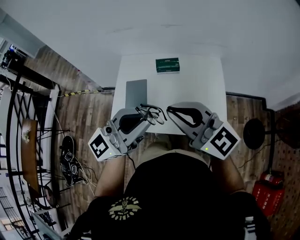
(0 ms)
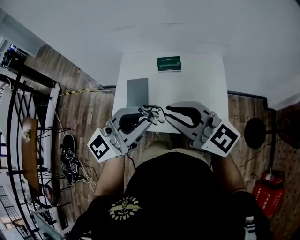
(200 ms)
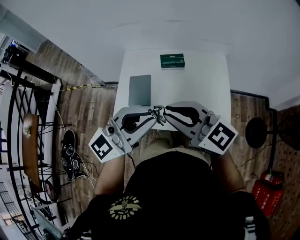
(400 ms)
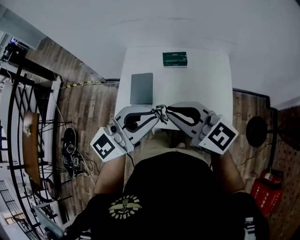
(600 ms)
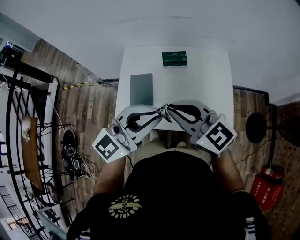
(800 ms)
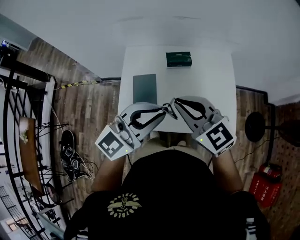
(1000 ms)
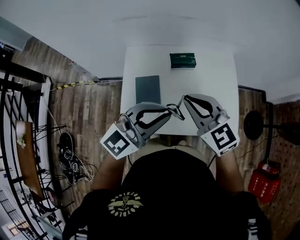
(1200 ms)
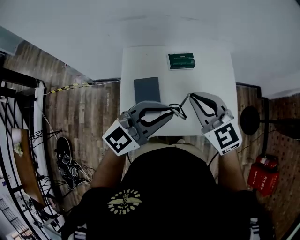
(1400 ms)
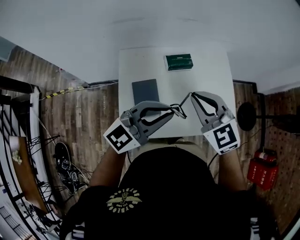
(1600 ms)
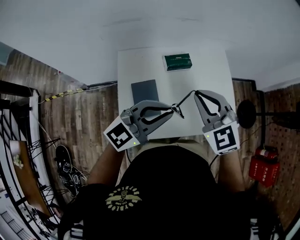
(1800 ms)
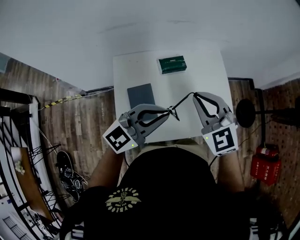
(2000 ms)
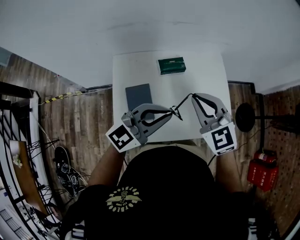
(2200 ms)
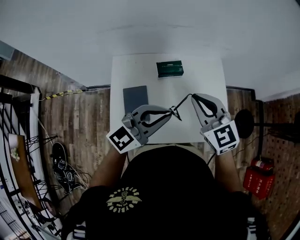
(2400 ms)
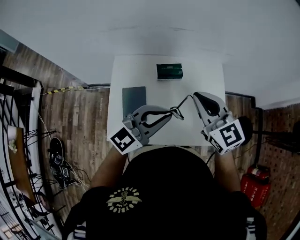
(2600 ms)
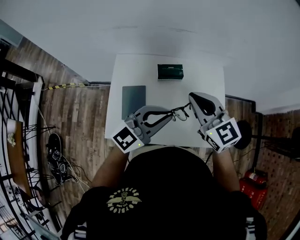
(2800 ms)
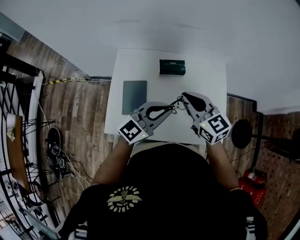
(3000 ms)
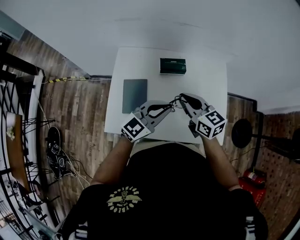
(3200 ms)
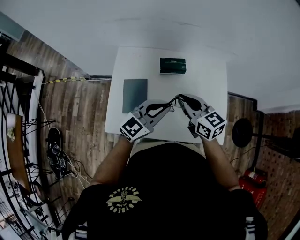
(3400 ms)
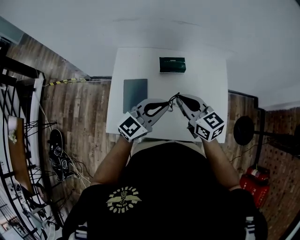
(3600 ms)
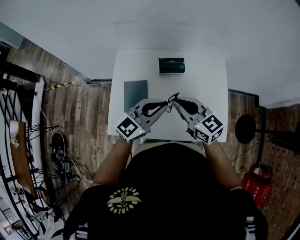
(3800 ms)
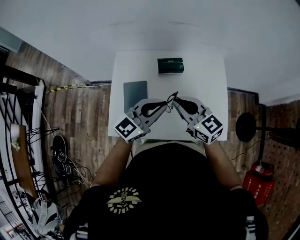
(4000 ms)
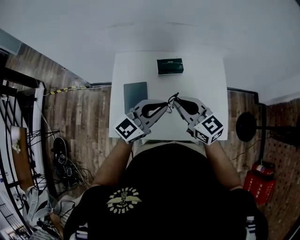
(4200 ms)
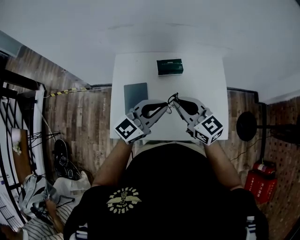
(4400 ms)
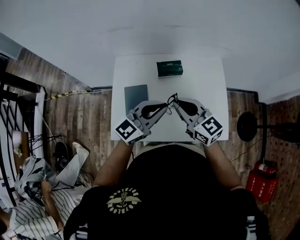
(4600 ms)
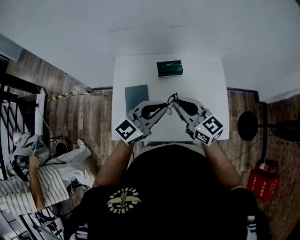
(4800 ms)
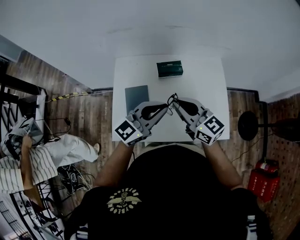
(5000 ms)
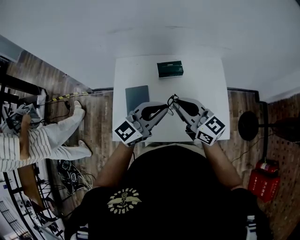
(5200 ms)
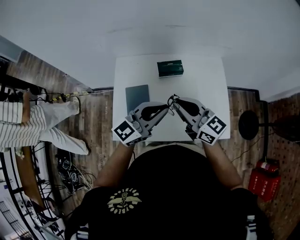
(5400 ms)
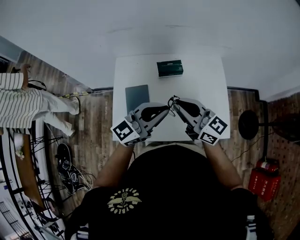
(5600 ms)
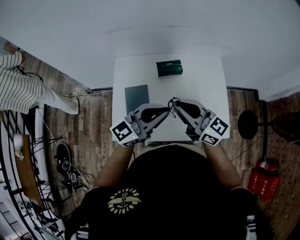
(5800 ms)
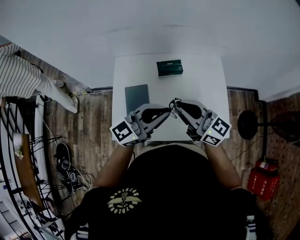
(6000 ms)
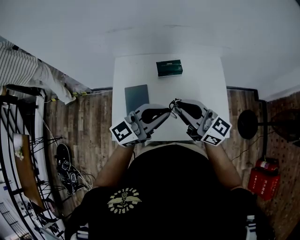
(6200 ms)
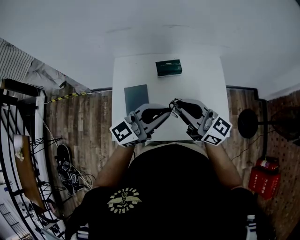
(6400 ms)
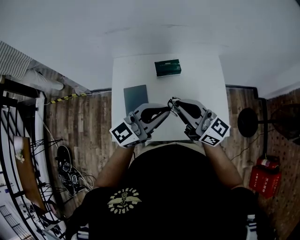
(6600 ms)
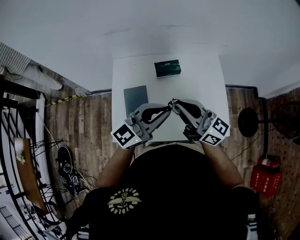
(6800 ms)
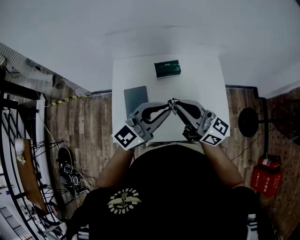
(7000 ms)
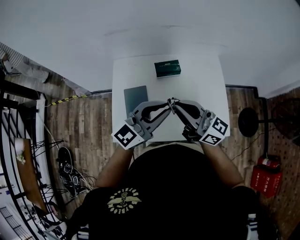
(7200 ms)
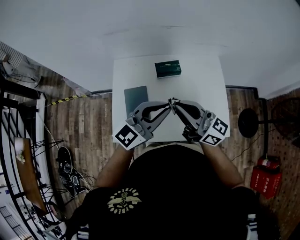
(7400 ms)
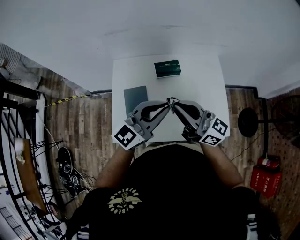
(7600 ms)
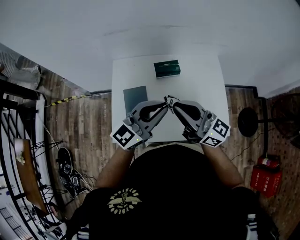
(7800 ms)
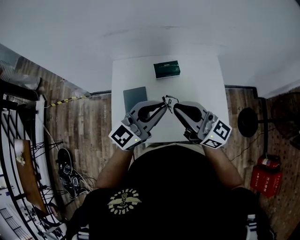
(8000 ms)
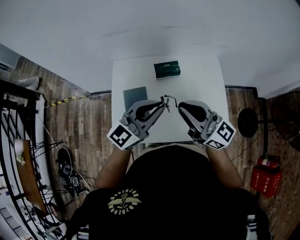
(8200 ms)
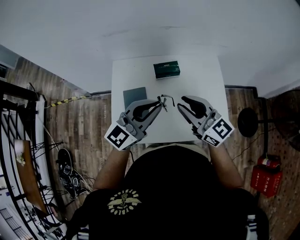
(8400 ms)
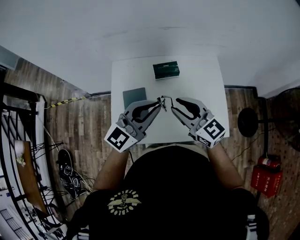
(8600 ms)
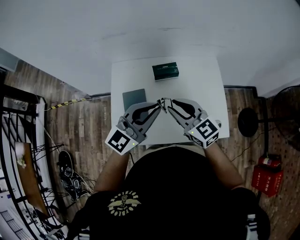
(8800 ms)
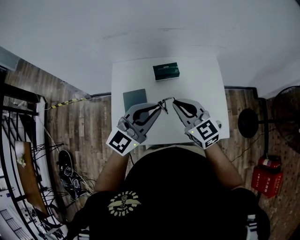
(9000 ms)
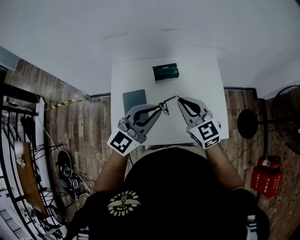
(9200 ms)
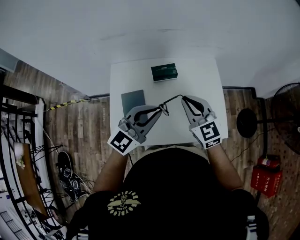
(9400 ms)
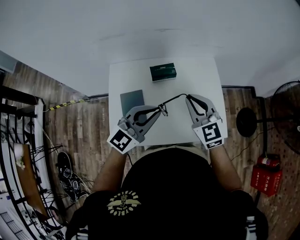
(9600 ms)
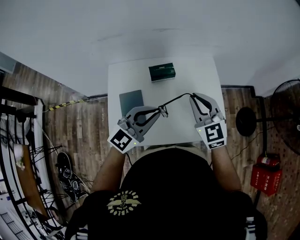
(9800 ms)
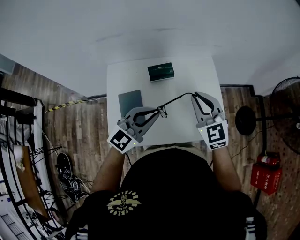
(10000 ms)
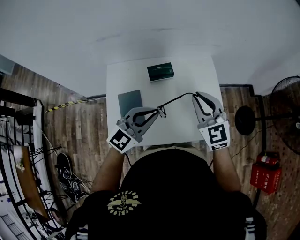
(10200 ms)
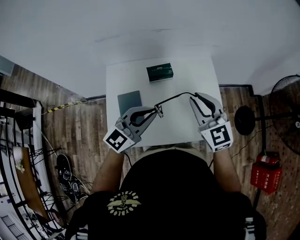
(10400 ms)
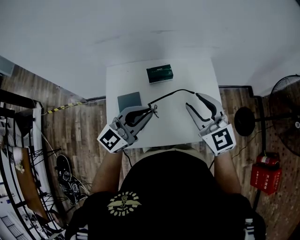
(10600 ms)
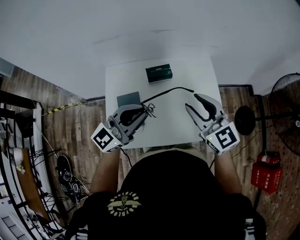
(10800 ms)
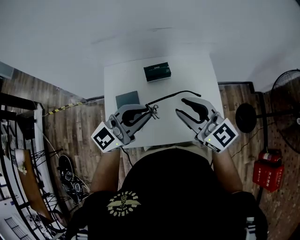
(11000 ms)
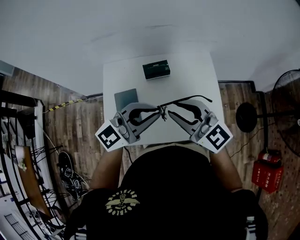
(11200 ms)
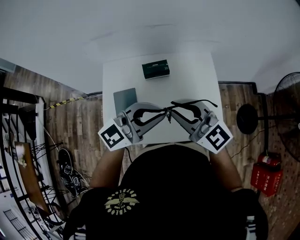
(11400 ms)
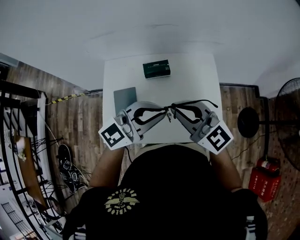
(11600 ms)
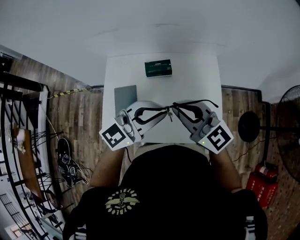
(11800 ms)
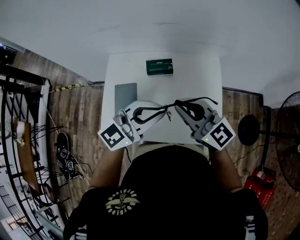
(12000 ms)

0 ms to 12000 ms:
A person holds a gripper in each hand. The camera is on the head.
0 ms to 1600 ms: Both grippers move forward, to the left and downward, roughly 20 cm. The right gripper rotates about 40 degrees, while the left gripper changes its angle by some 20 degrees.
1600 ms to 3000 ms: The right gripper travels to the right and forward by approximately 10 cm, and turns by roughly 30 degrees. Meanwhile the left gripper is displaced to the right, downward and forward by approximately 15 cm.
3000 ms to 4400 ms: The right gripper changes place by some 5 cm.
4400 ms to 6000 ms: The right gripper moves approximately 5 cm.
6000 ms to 7600 ms: The grippers move only a little.
7600 ms to 9000 ms: The right gripper goes some 5 cm downward, tips its fingers downward by approximately 30 degrees, and opens, then closes again.
9000 ms to 10400 ms: The right gripper goes approximately 5 cm to the right.
10400 ms to 12000 ms: The left gripper shifts roughly 10 cm to the right. Meanwhile the right gripper changes its angle by roughly 40 degrees, and opens and closes again.

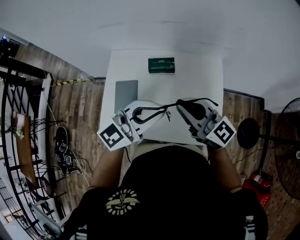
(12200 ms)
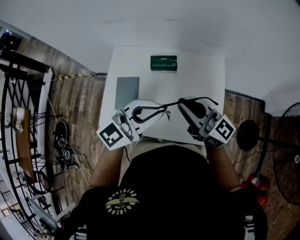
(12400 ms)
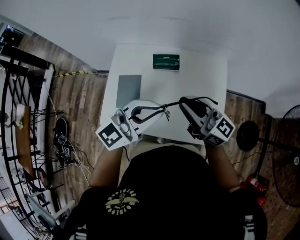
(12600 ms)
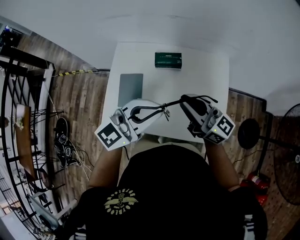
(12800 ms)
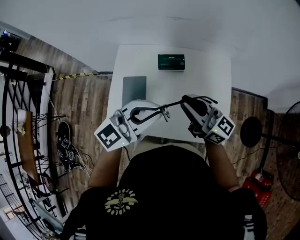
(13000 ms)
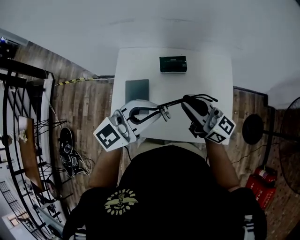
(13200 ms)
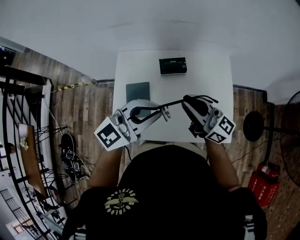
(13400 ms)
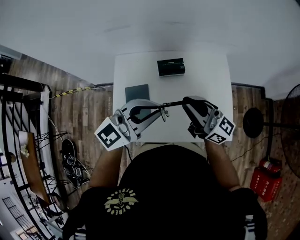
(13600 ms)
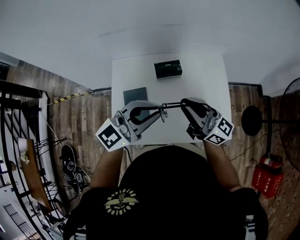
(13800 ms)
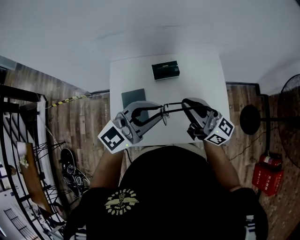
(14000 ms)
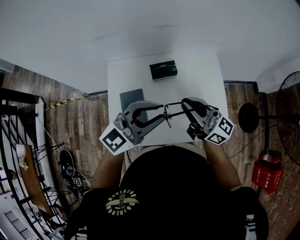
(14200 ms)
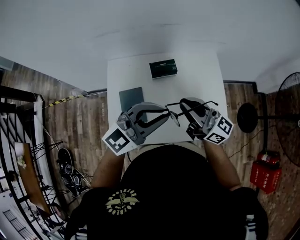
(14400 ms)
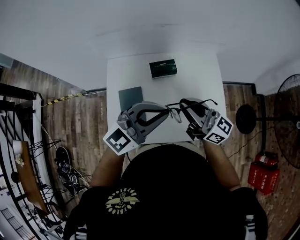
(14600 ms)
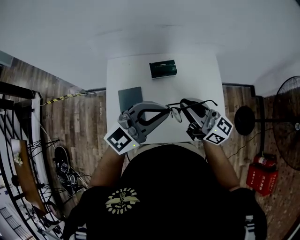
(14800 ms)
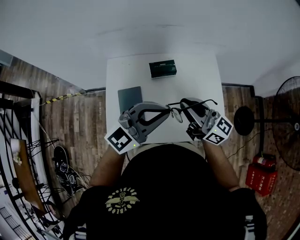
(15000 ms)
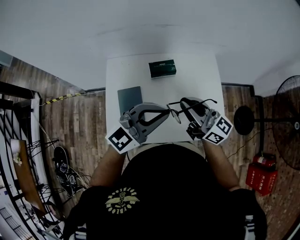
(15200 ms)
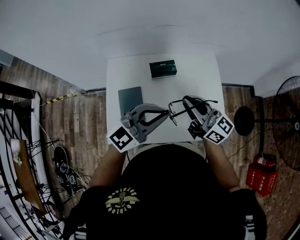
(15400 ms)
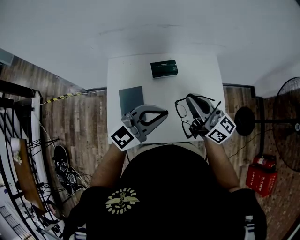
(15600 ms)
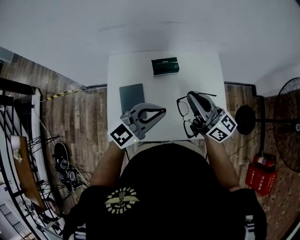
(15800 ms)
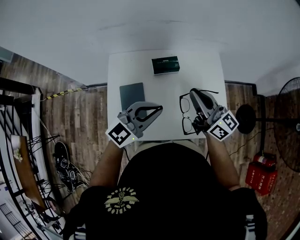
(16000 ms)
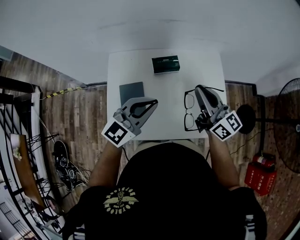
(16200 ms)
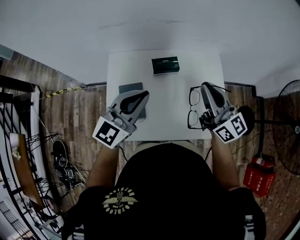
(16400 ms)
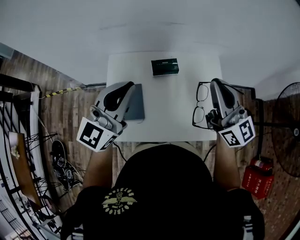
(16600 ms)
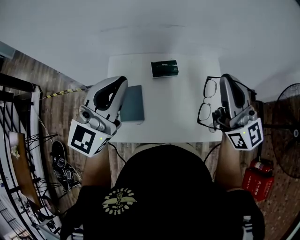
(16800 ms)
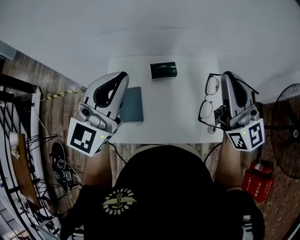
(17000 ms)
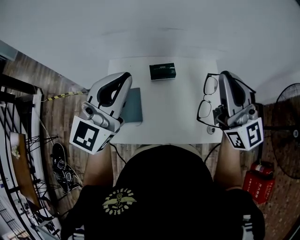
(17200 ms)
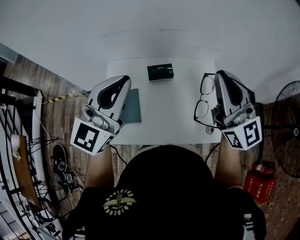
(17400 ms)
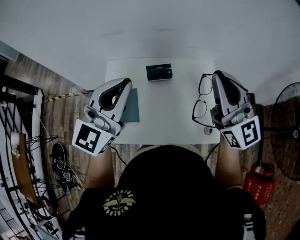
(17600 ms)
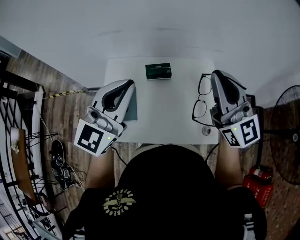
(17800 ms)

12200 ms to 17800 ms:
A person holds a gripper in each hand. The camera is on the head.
12200 ms to 13600 ms: The right gripper travels to the left by about 5 cm. Meanwhile the left gripper heads to the left, covering roughly 10 cm.
13600 ms to 15000 ms: The grippers make only small movements.
15000 ms to 16400 ms: The right gripper travels forward by approximately 5 cm. The left gripper shifts roughly 10 cm to the left, and swivels some 20 degrees.
16400 ms to 17800 ms: The right gripper travels upward and to the right by about 15 cm, and turns by about 20 degrees. The left gripper travels upward by approximately 10 cm.

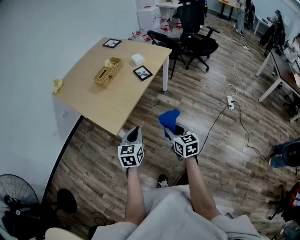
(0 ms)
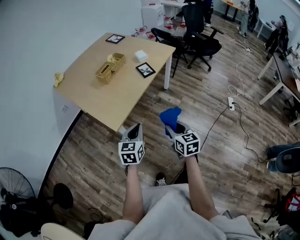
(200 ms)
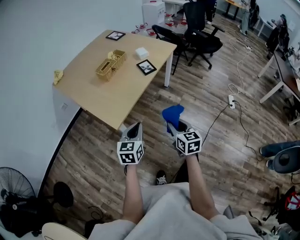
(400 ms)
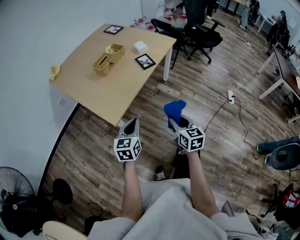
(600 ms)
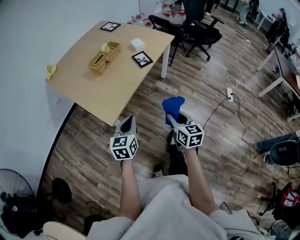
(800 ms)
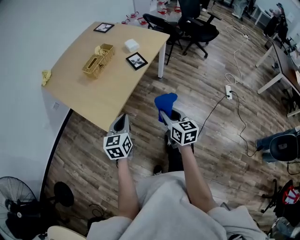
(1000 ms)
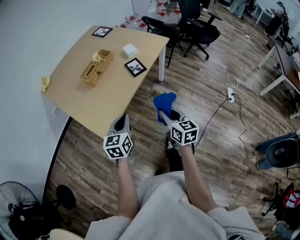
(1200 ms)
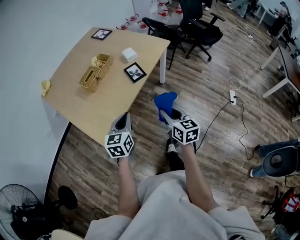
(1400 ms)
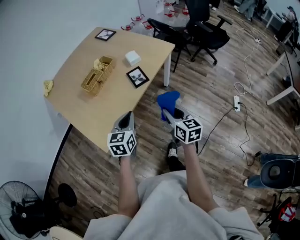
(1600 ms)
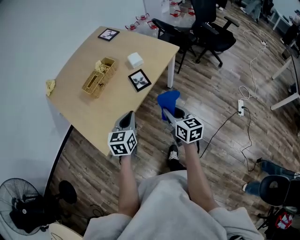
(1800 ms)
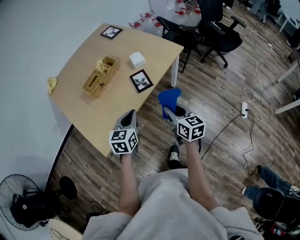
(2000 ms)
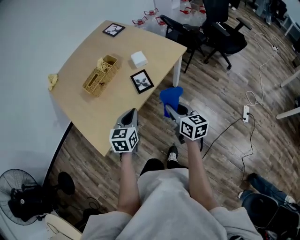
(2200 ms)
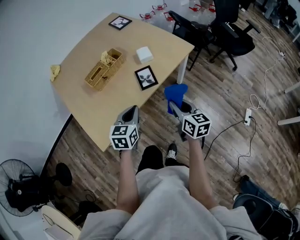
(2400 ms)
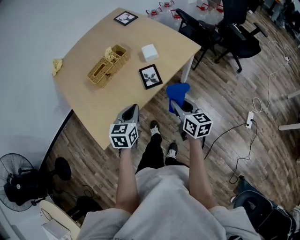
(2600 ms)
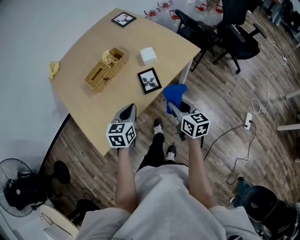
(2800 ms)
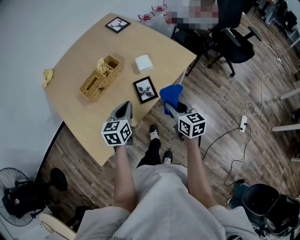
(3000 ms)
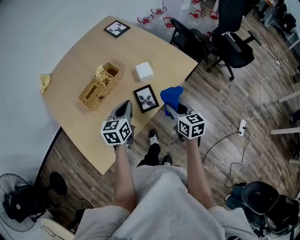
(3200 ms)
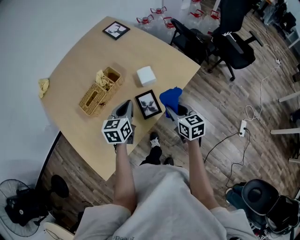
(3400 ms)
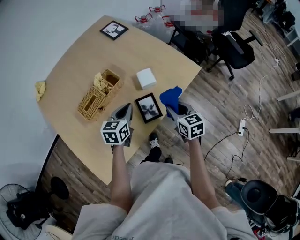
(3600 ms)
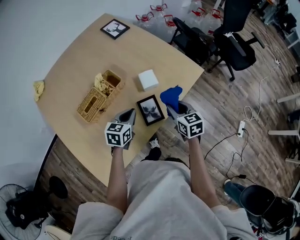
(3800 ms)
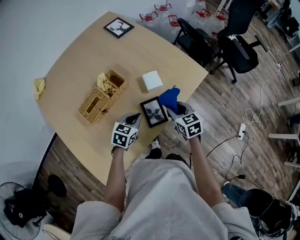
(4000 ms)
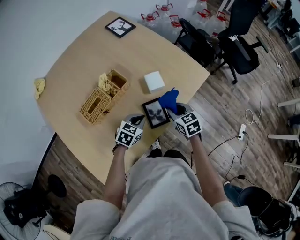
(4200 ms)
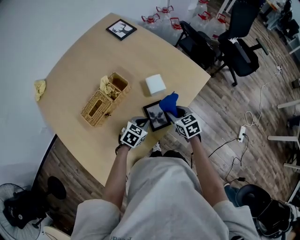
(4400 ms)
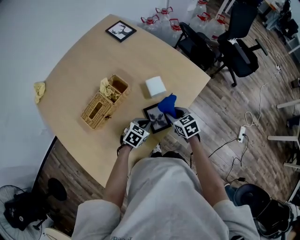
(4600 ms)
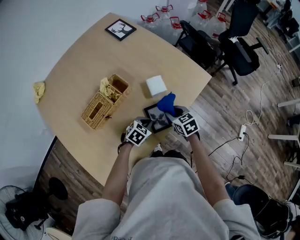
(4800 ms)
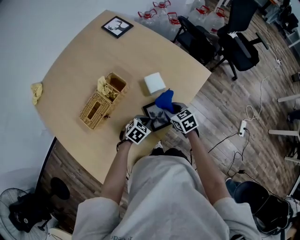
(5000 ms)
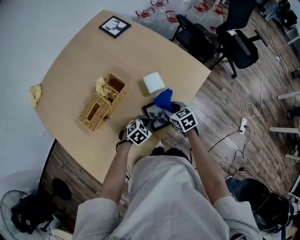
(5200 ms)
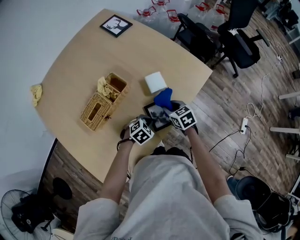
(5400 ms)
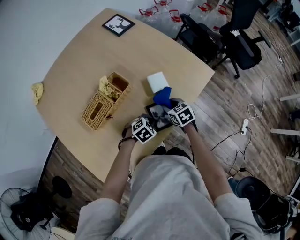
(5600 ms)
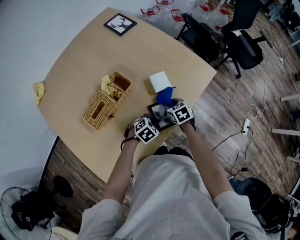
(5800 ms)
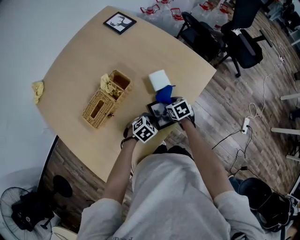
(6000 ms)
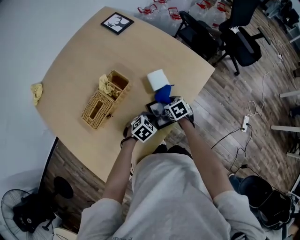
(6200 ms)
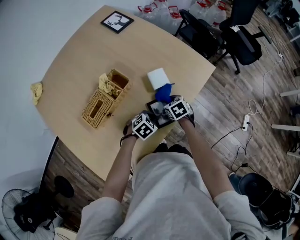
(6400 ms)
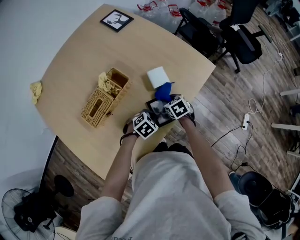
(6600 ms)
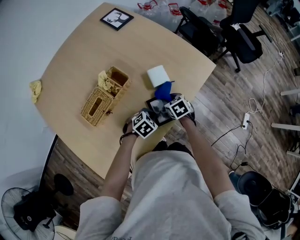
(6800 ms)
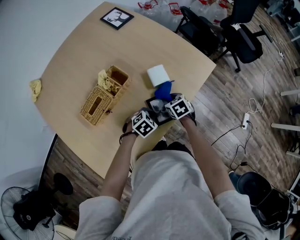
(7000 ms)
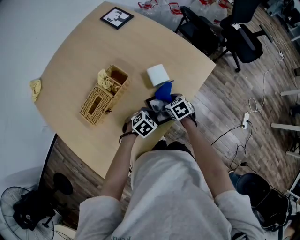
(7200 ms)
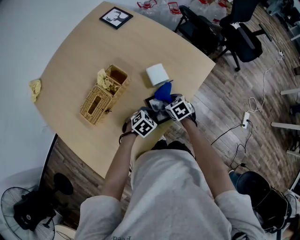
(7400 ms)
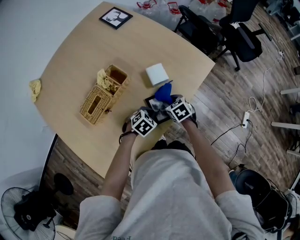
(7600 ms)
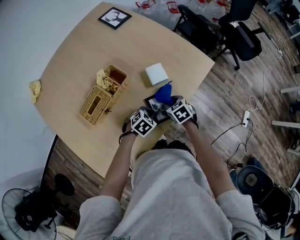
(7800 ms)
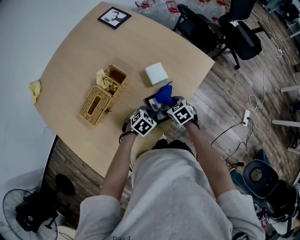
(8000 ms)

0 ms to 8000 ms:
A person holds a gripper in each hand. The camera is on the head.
0 ms to 1600 ms: Both grippers move forward, approximately 25 cm.
1600 ms to 3200 ms: The grippers both shift forward by approximately 30 cm.
3200 ms to 4800 ms: The left gripper is displaced downward by about 20 cm, and changes its angle by some 50 degrees. The right gripper goes approximately 20 cm downward, forward and to the left, and changes its angle by some 30 degrees.
4800 ms to 6400 ms: The right gripper goes some 5 cm downward.
6400 ms to 8000 ms: The grippers move only a little.
